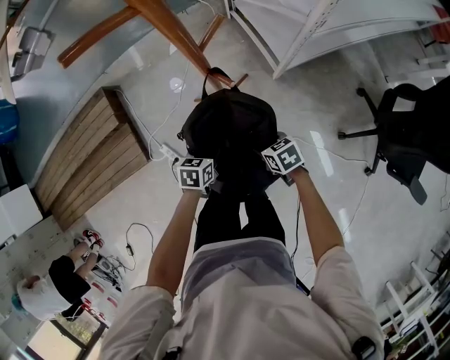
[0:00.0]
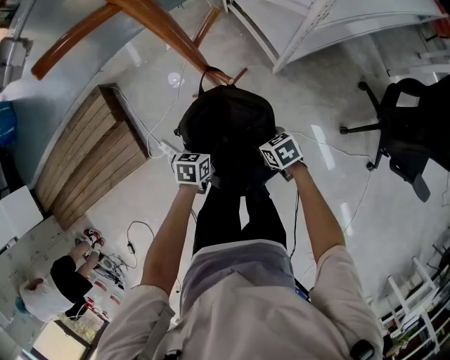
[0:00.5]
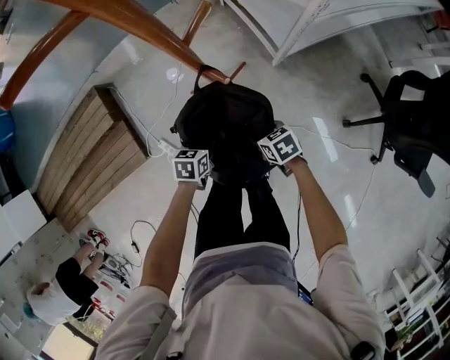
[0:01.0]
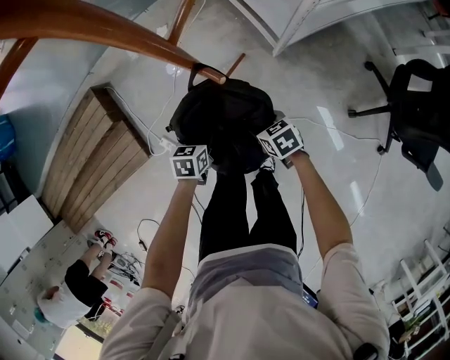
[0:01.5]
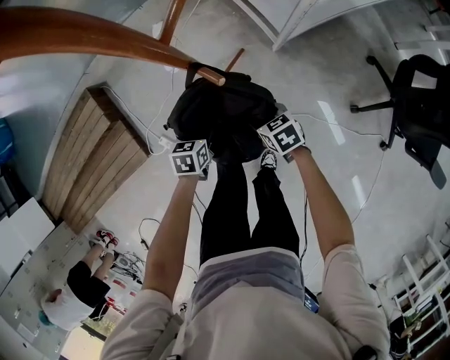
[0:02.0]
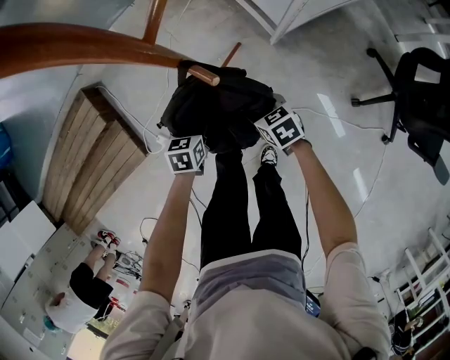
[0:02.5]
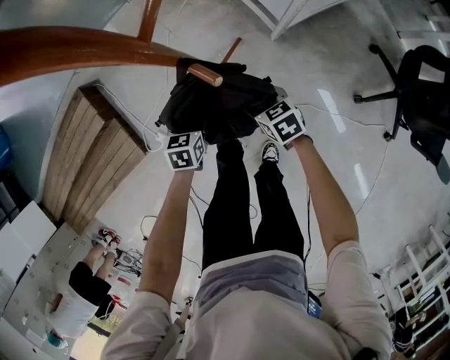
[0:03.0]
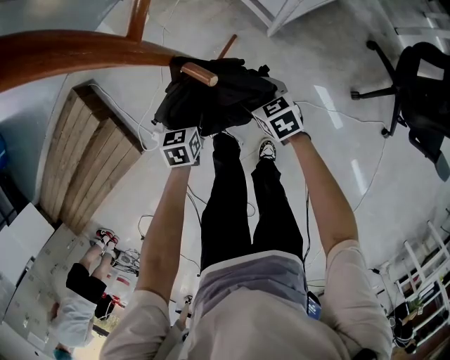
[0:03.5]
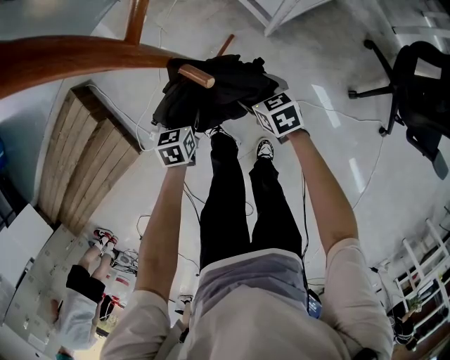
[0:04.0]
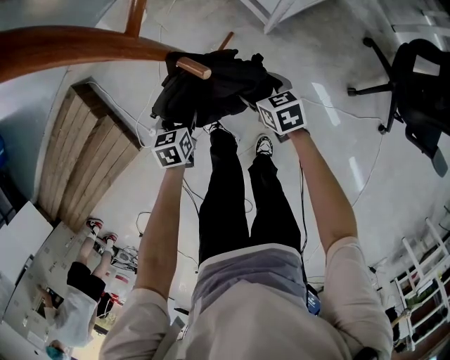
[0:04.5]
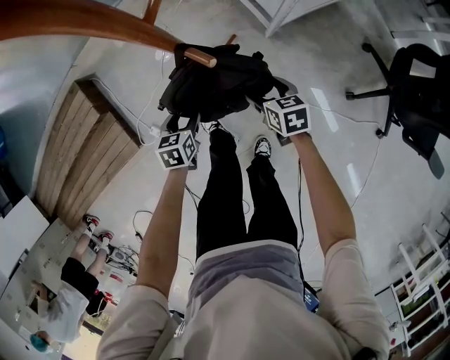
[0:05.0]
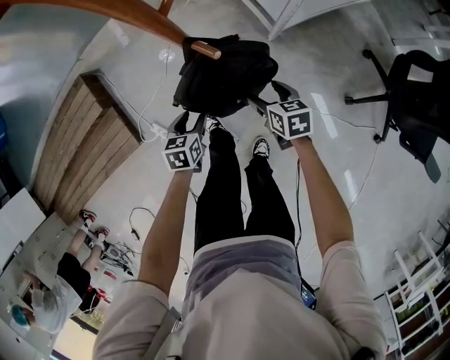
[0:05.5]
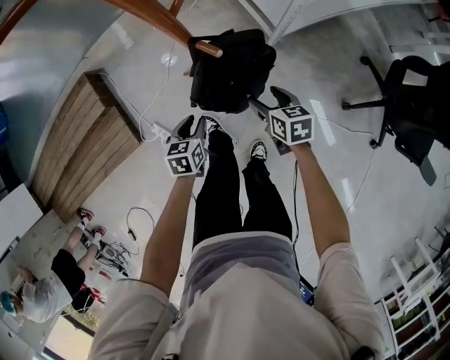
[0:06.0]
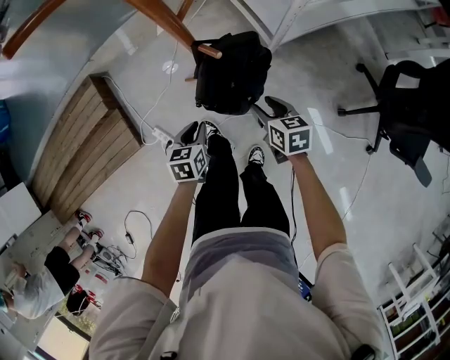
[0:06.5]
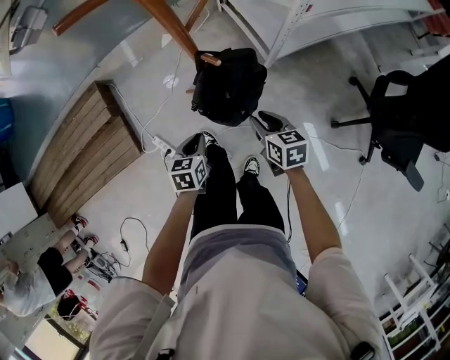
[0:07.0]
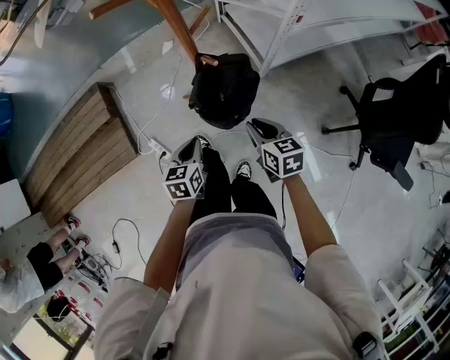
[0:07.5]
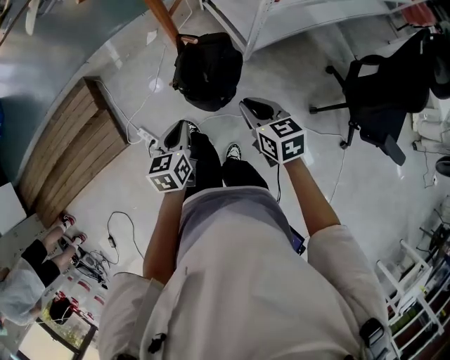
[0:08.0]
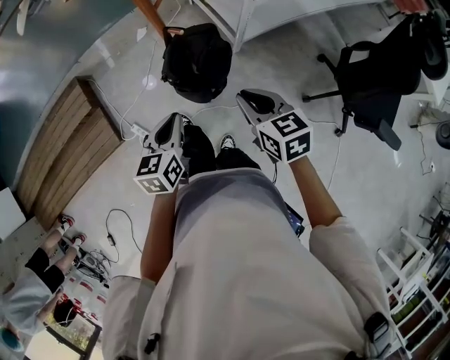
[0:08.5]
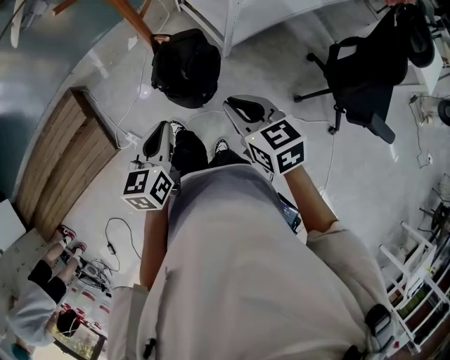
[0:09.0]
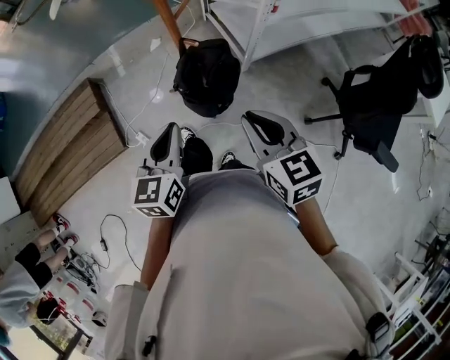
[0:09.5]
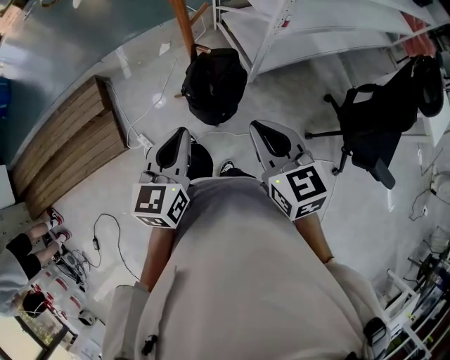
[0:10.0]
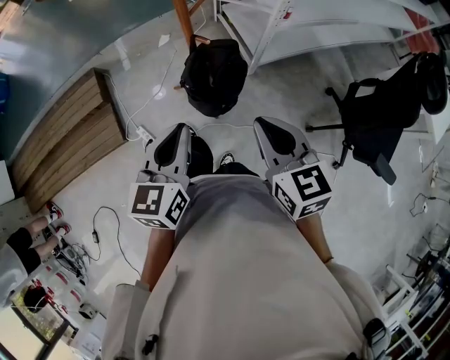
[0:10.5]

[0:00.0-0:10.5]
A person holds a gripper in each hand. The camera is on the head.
0:00.0 to 0:02.0: The grippers both shift downward and forward by some 10 cm.
0:02.0 to 0:04.0: The two grippers go approximately 5 cm forward. The right gripper opens its fingers. Meanwhile the left gripper opens its fingers.
0:04.0 to 0:06.5: The left gripper goes about 15 cm backward and upward, and closes up, while the right gripper heads upward and backward, covering roughly 15 cm, and closes.
0:06.5 to 0:08.5: Both grippers travel together upward and backward, roughly 25 cm. The right gripper closes up.
0:08.5 to 0:10.5: The right gripper shifts about 15 cm upward and backward. Meanwhile the left gripper shifts roughly 15 cm upward.

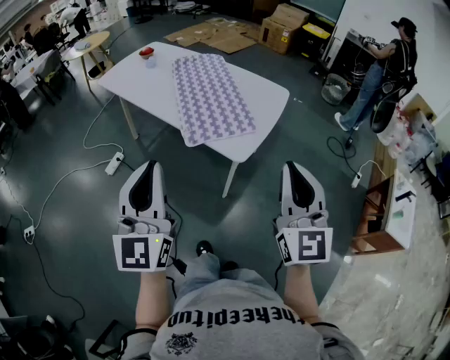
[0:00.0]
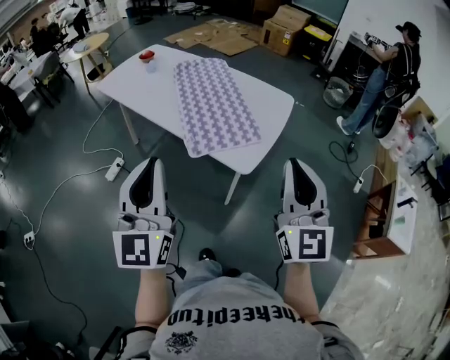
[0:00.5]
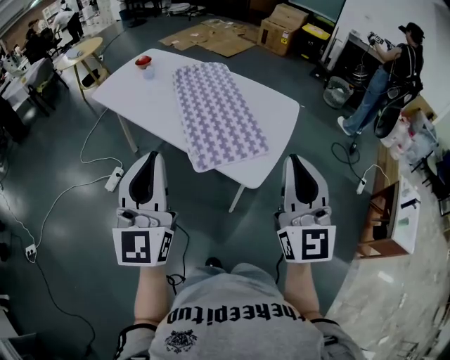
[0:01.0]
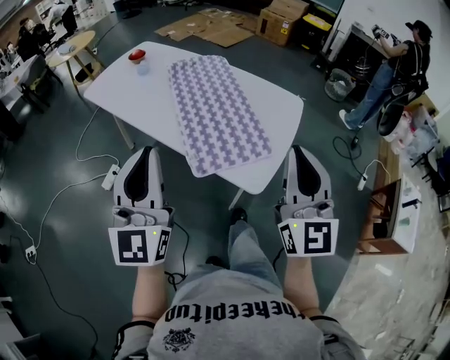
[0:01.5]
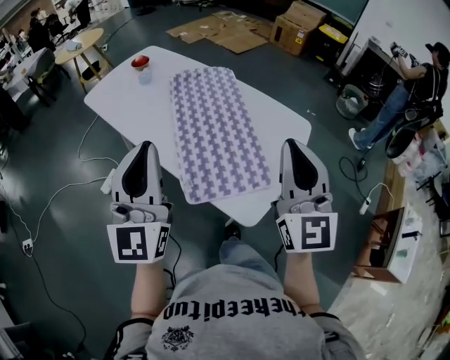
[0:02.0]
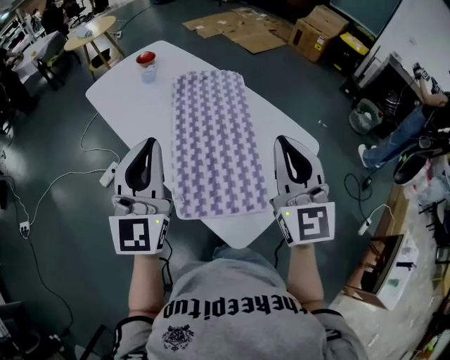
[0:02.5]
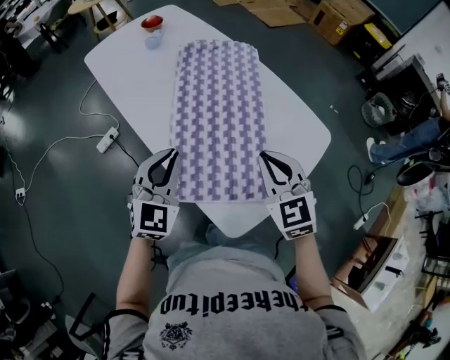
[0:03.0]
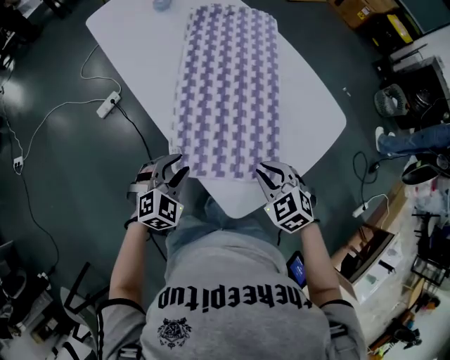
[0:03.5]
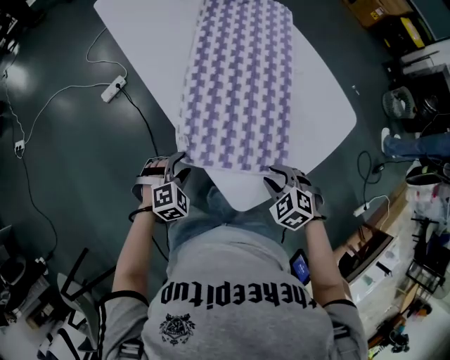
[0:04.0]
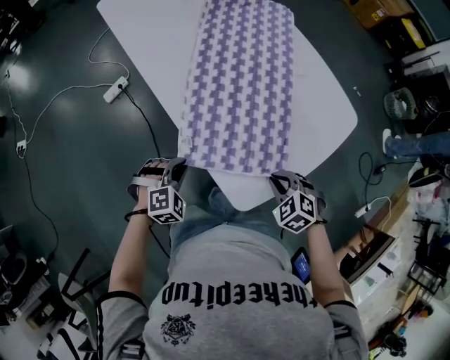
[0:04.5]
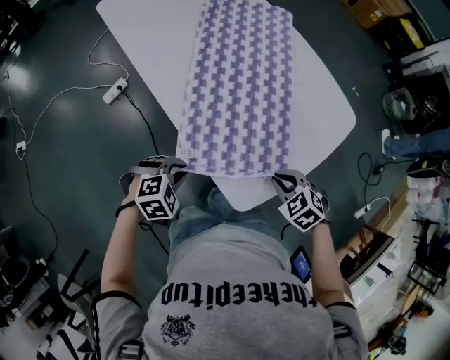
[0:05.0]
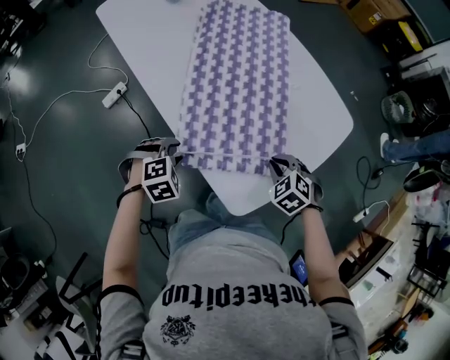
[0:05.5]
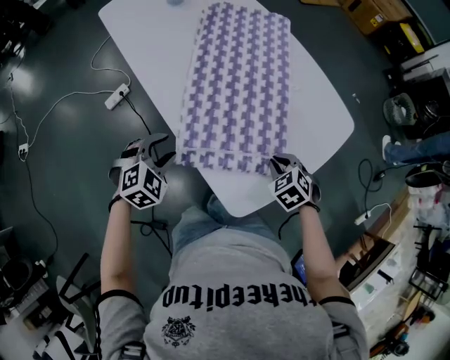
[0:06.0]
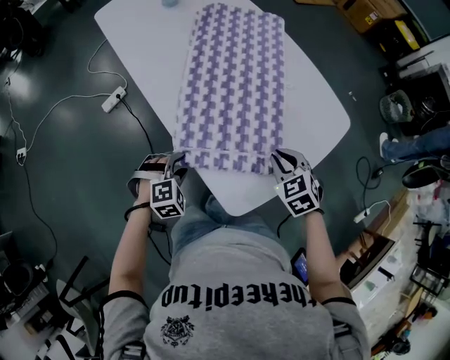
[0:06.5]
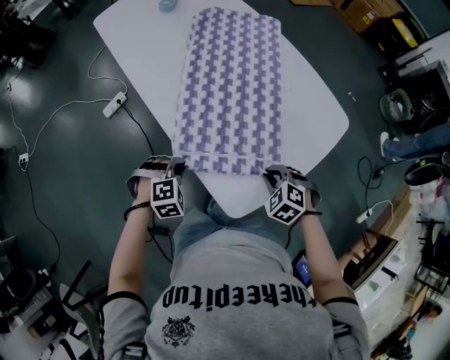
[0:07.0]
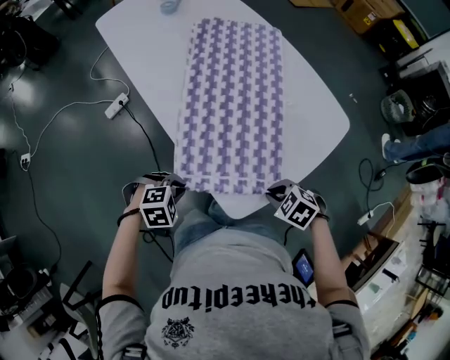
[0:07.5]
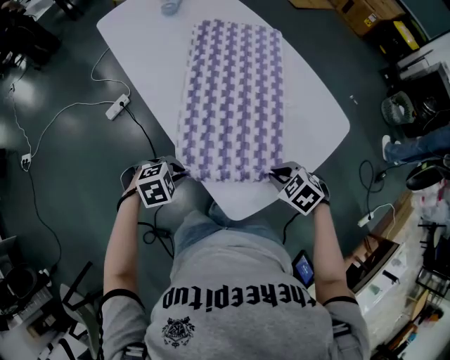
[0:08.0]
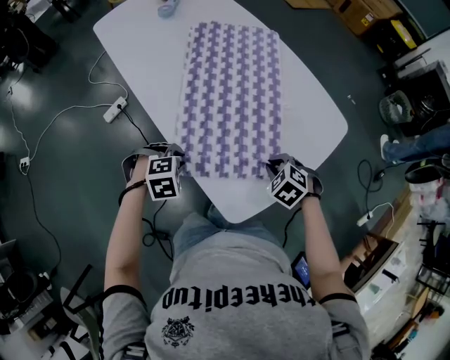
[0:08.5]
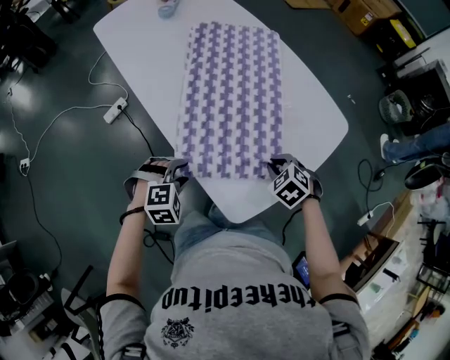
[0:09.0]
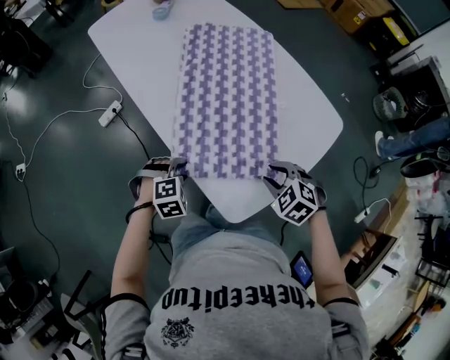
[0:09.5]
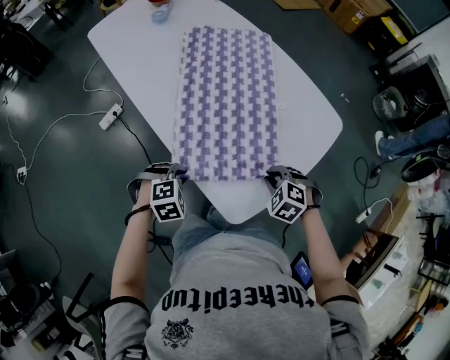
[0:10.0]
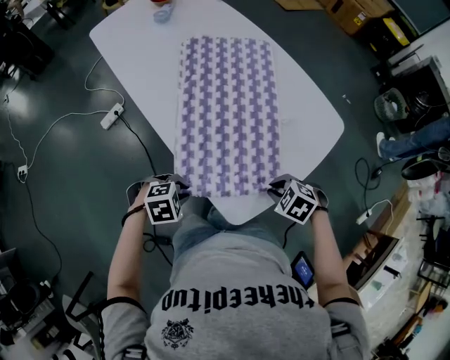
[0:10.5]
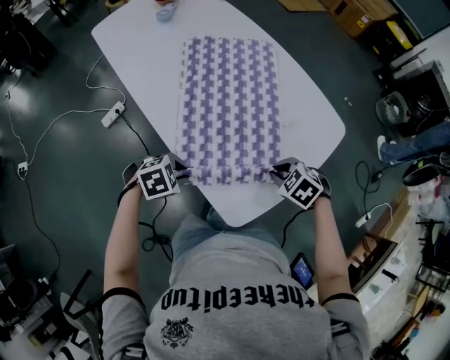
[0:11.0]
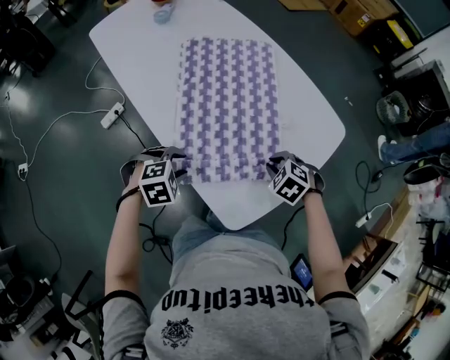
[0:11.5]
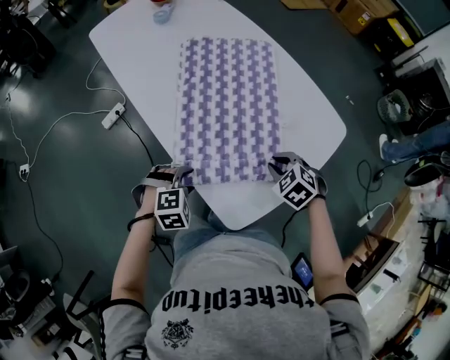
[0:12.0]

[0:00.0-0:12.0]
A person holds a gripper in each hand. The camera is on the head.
0:00.0 to 0:02.0: Both grippers travel together forward, about 35 cm.
0:02.0 to 0:04.0: The two grippers go about 50 cm downward. The left gripper angles its fingers downward, by some 80 degrees, and opens; the right gripper points its fingers some 70 degrees further downward, and opens.
0:04.0 to 0:06.0: The left gripper shifts roughly 10 cm upward, and closes, then reopens.
0:06.0 to 0:08.0: The left gripper rotates some 30 degrees, and closes its fingers.
0:08.0 to 0:10.0: The left gripper opens and closes again.
0:10.0 to 0:12.0: The left gripper opens its fingers. Meanwhile the right gripper moves about 10 cm.

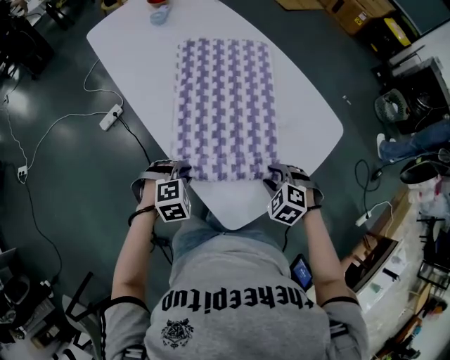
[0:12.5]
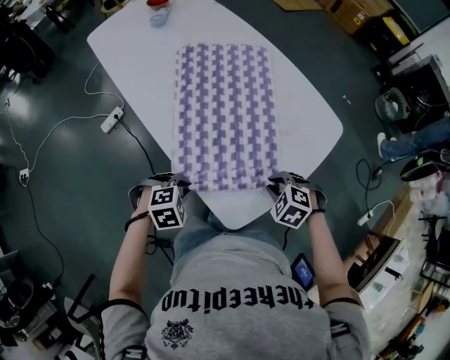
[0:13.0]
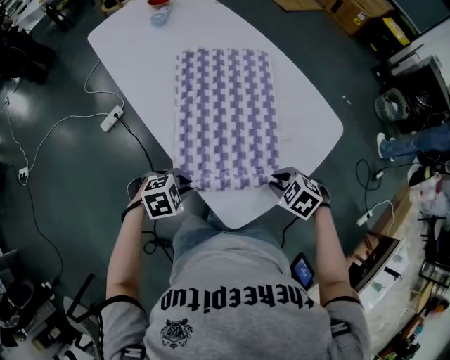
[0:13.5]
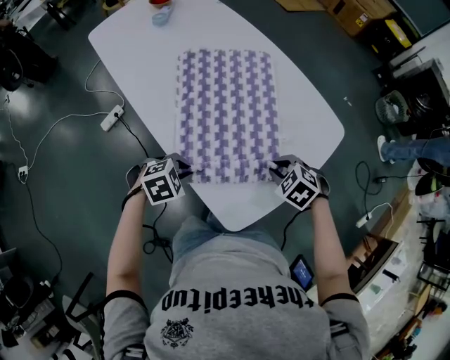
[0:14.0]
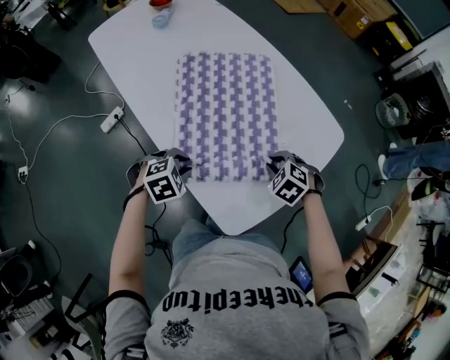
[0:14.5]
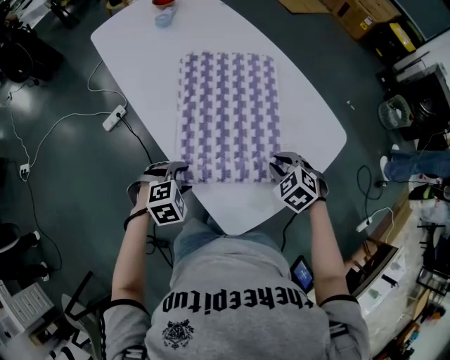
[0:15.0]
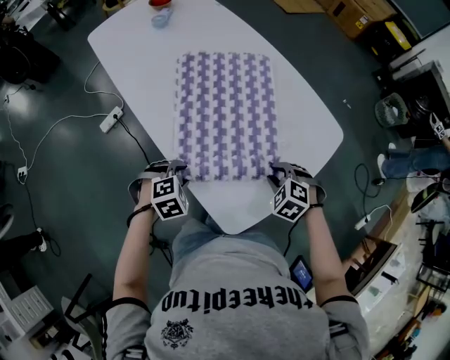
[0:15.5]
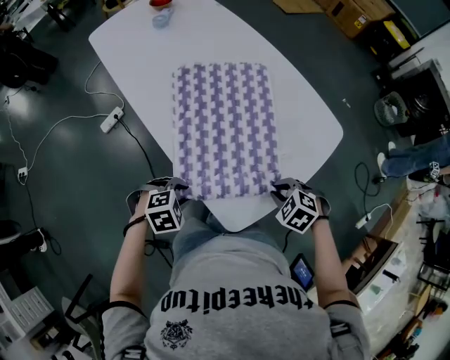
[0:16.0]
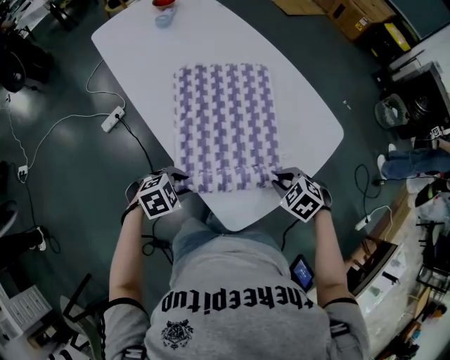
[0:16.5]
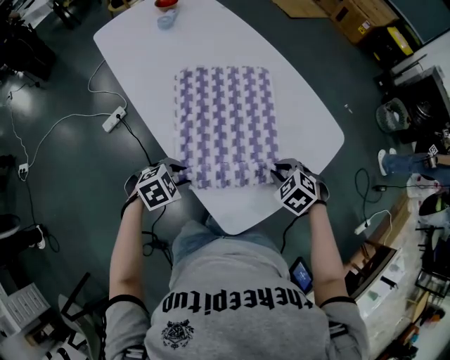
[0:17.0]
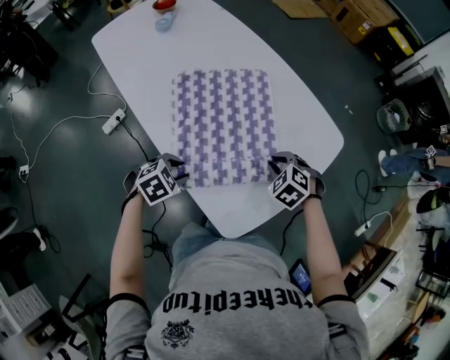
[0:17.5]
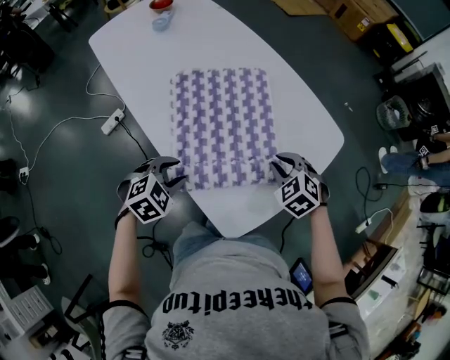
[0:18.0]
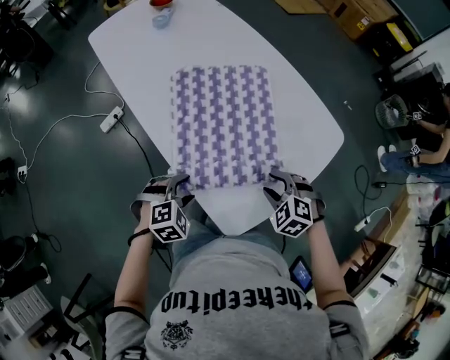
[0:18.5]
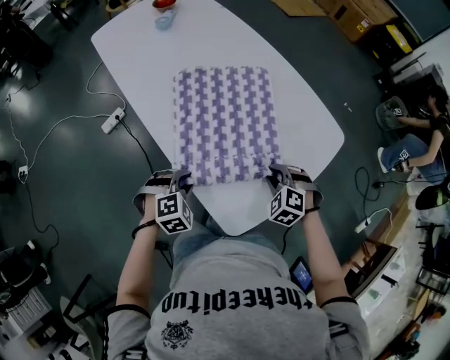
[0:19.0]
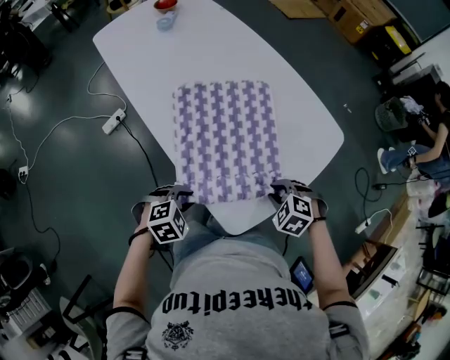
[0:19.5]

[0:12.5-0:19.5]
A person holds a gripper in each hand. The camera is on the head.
0:12.5 to 0:14.5: The right gripper shifts by about 5 cm, and closes.
0:14.5 to 0:16.0: The left gripper shifts by some 10 cm, and opens, then closes again. The right gripper shifts by approximately 10 cm.
0:16.0 to 0:17.5: The right gripper moves some 10 cm. The left gripper shifts by about 10 cm.
0:17.5 to 0:19.5: Both grippers move backward, some 10 cm. The left gripper opens, then closes once more.
